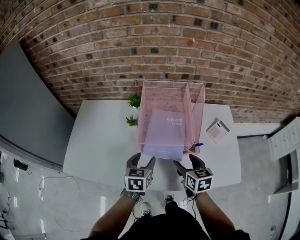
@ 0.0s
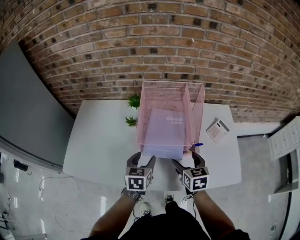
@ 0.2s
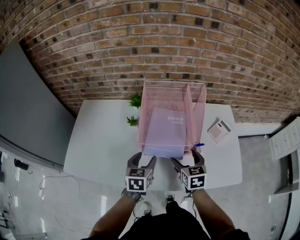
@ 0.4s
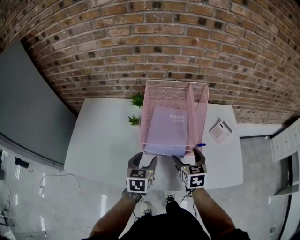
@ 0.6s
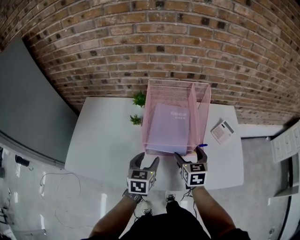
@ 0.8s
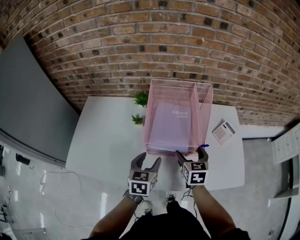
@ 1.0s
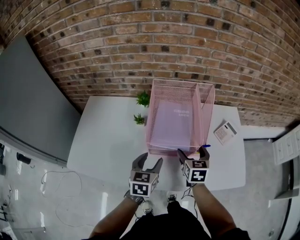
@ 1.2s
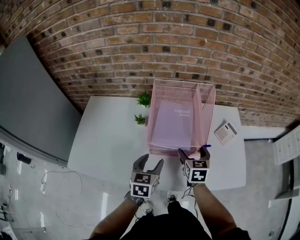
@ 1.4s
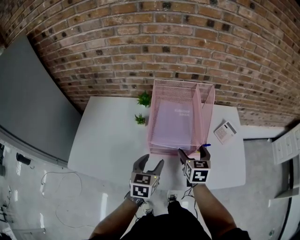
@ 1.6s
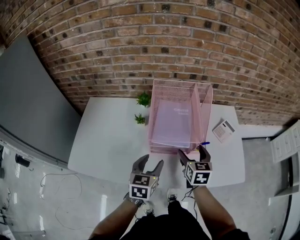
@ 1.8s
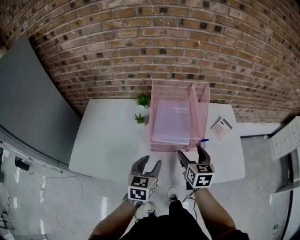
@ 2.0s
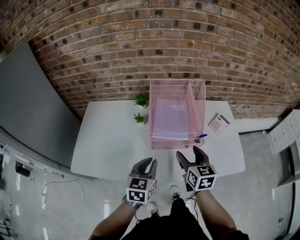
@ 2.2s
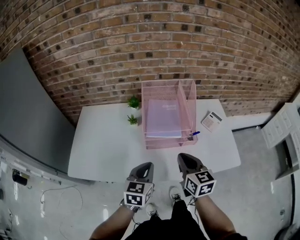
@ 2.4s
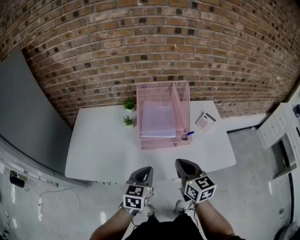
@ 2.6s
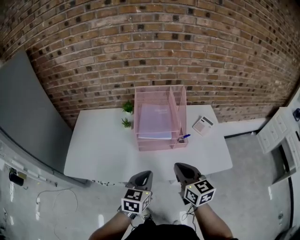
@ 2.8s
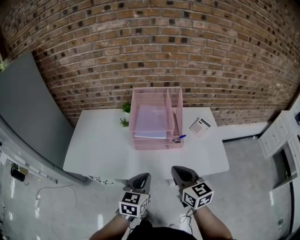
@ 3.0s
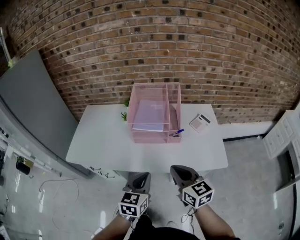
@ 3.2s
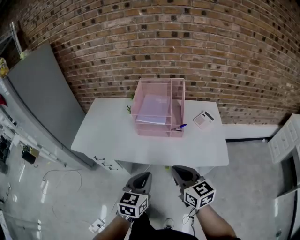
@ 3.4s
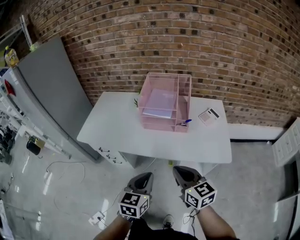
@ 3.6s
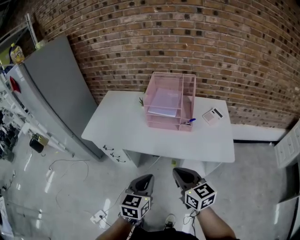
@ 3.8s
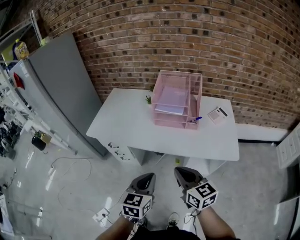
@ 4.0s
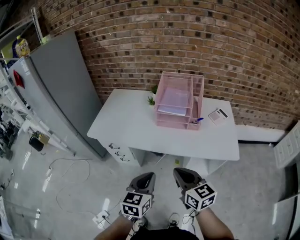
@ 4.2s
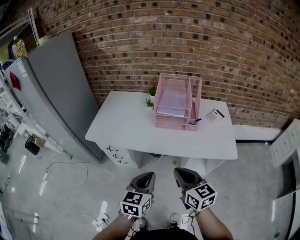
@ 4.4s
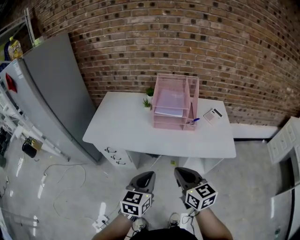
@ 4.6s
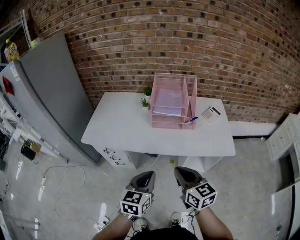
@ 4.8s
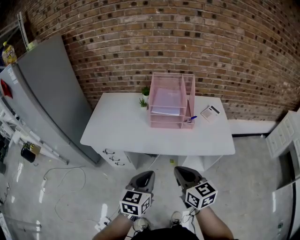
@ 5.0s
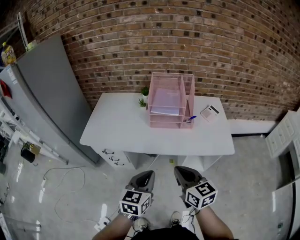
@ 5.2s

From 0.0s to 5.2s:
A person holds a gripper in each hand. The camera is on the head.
From 0.0s to 1.8s: The left gripper moves some 5 cm.
From 1.8s to 3.4s: The right gripper moves backward, approximately 30 cm, rotates about 30 degrees, and closes up, while the left gripper shifts some 30 cm backward and to the right, and closes.
From 3.4s to 5.2s: The left gripper moves to the left, roughly 10 cm. The right gripper shifts about 10 cm to the left and backward.

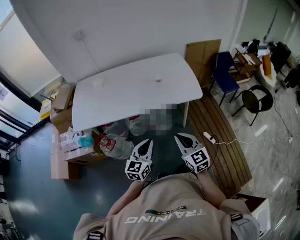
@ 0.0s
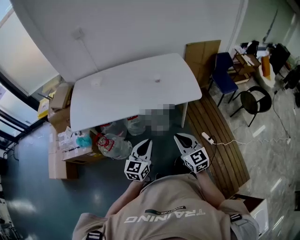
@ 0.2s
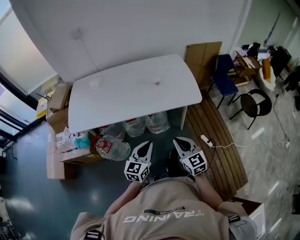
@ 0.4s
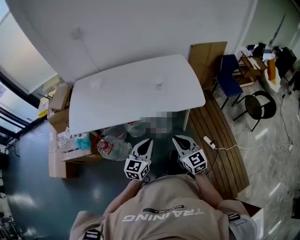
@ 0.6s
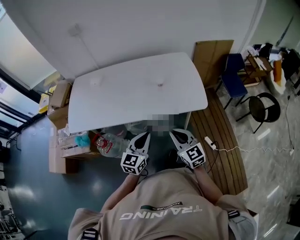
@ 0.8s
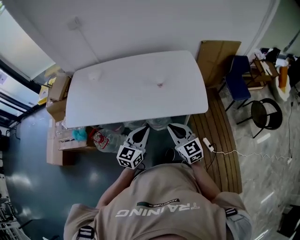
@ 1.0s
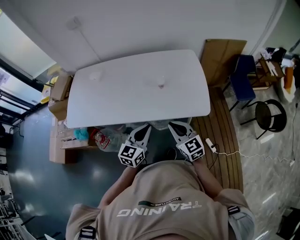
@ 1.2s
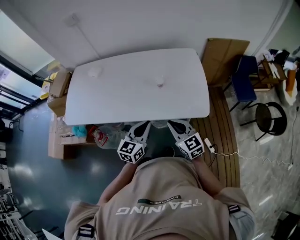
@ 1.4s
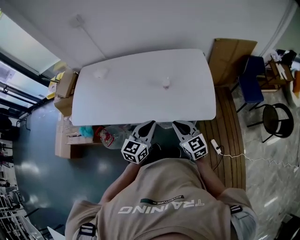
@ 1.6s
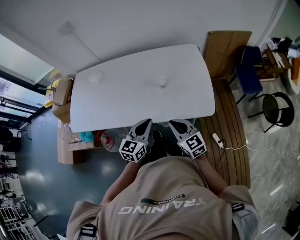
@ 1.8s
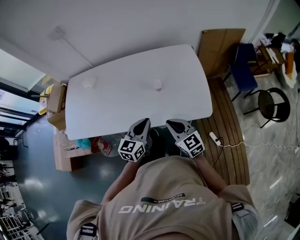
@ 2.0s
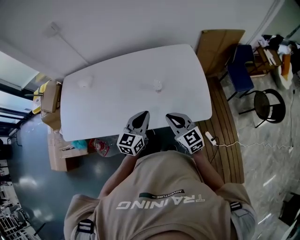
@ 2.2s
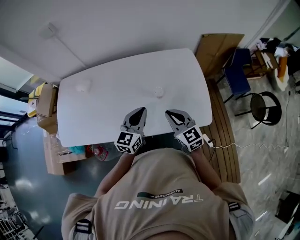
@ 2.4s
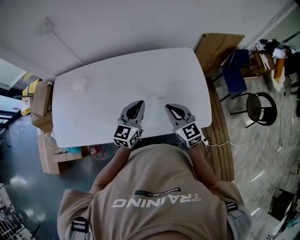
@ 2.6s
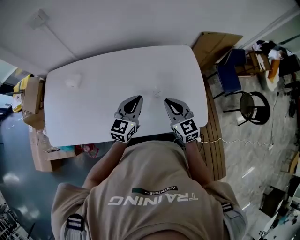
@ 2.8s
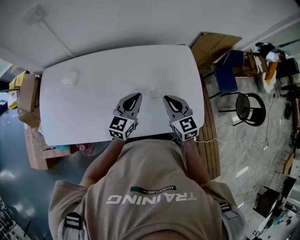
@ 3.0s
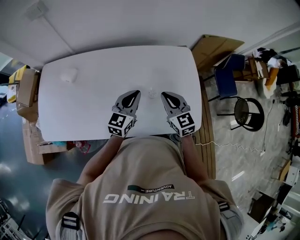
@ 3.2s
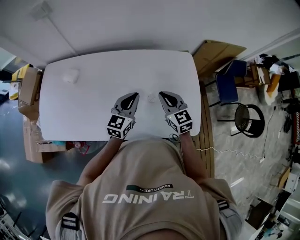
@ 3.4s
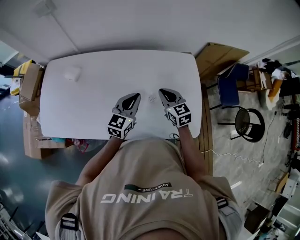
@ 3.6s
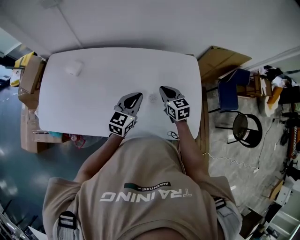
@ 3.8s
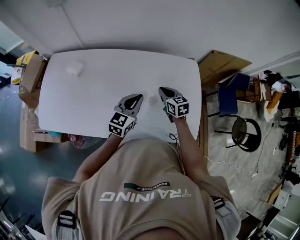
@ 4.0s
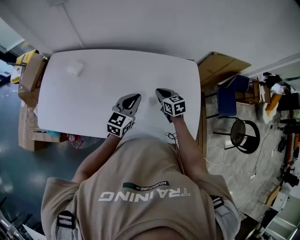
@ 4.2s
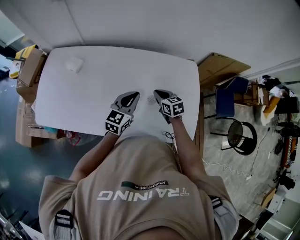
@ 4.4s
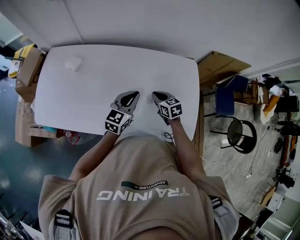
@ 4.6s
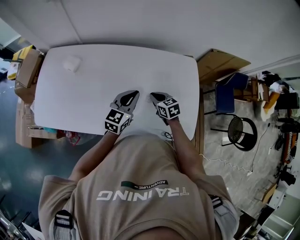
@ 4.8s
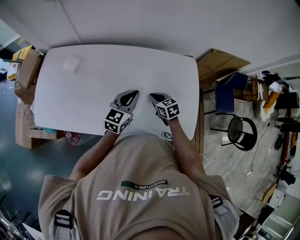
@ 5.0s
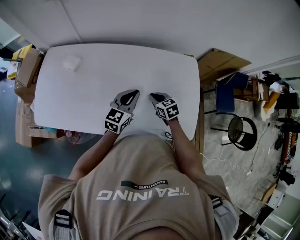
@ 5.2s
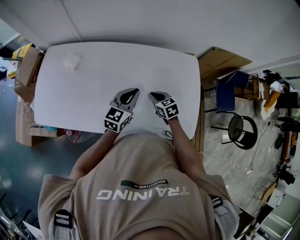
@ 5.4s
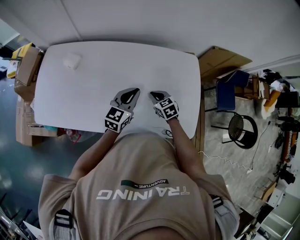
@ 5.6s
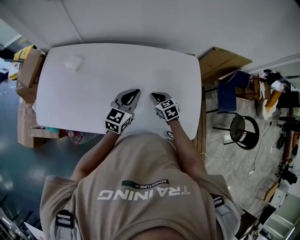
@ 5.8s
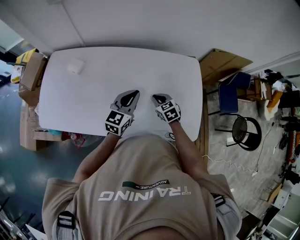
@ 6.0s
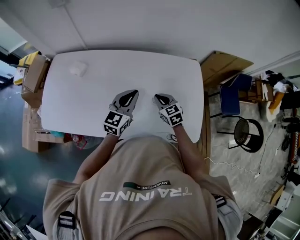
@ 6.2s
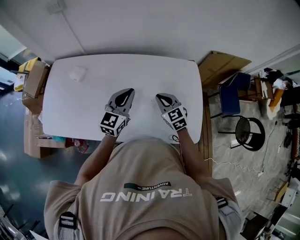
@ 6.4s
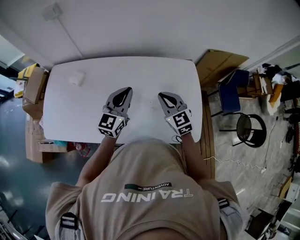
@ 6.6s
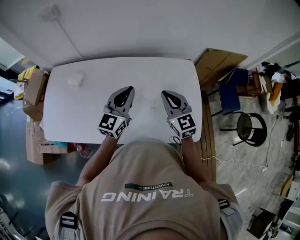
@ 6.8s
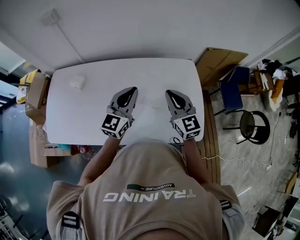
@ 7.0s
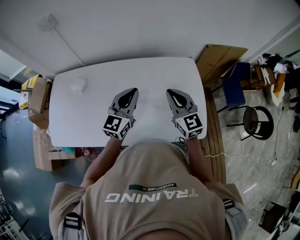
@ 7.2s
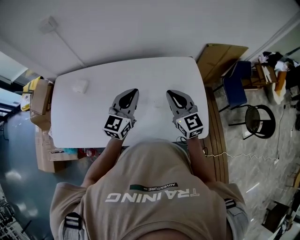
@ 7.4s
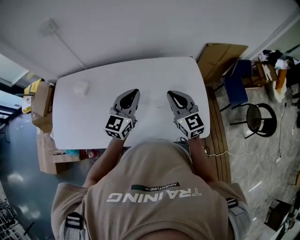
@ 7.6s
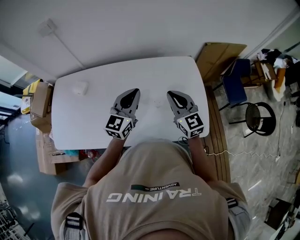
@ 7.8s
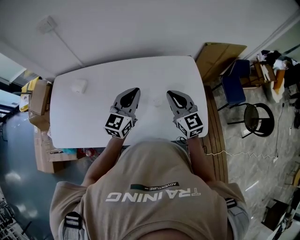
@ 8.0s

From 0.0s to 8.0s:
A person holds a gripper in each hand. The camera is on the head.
From 0.0s to 1.6s: The two grippers go roughly 25 cm forward.
From 1.6s to 3.2s: The grippers both shift forward by about 25 cm.
From 3.2s to 4.8s: The right gripper travels downward by approximately 15 cm, and swivels about 30 degrees.
From 4.8s to 6.4s: The two grippers go roughly 5 cm upward. The right gripper rotates about 20 degrees.
From 6.4s to 8.0s: The right gripper is displaced upward by approximately 10 cm, and swivels about 20 degrees.

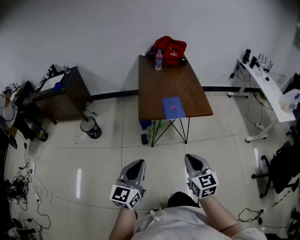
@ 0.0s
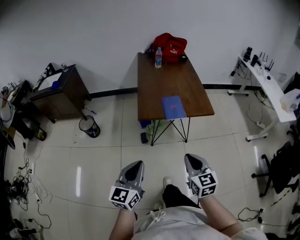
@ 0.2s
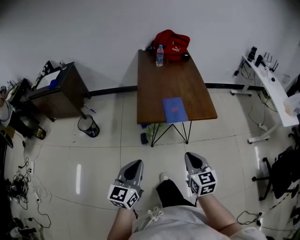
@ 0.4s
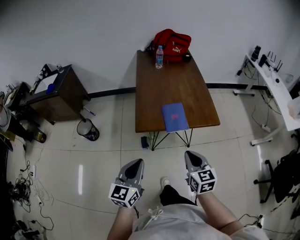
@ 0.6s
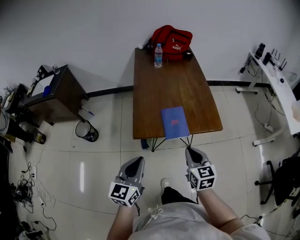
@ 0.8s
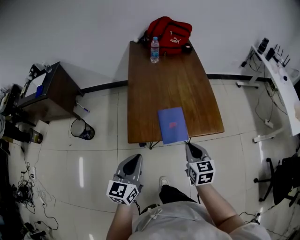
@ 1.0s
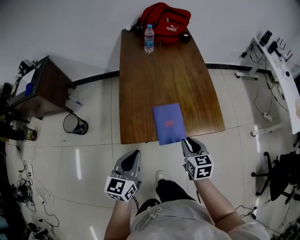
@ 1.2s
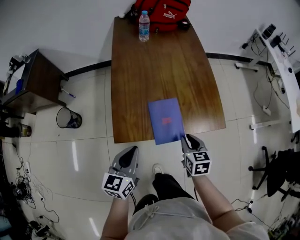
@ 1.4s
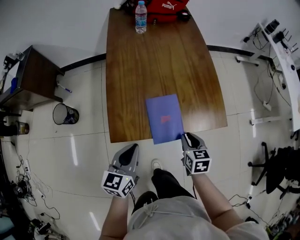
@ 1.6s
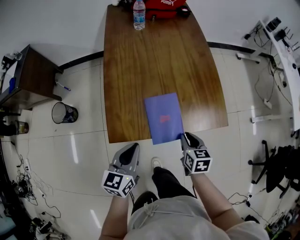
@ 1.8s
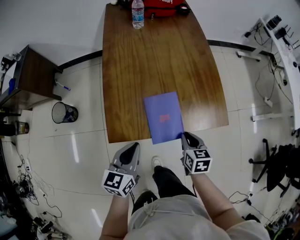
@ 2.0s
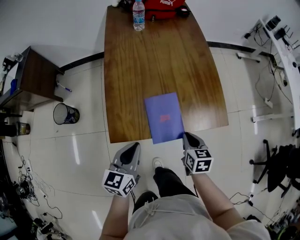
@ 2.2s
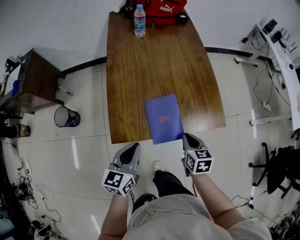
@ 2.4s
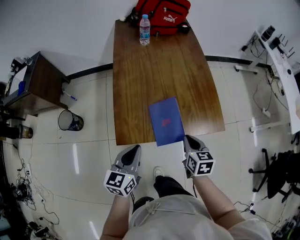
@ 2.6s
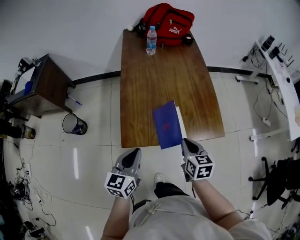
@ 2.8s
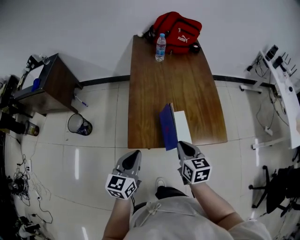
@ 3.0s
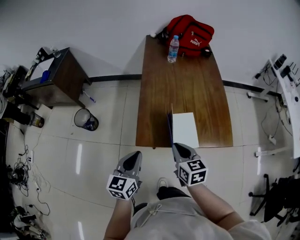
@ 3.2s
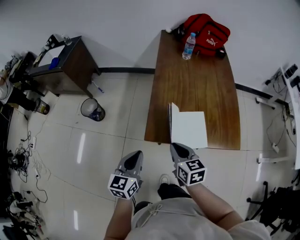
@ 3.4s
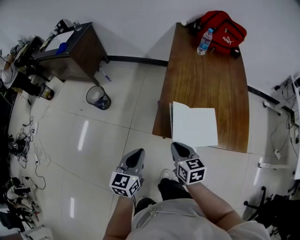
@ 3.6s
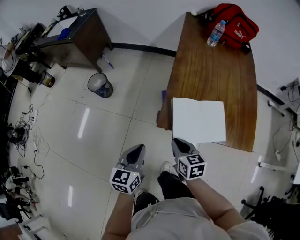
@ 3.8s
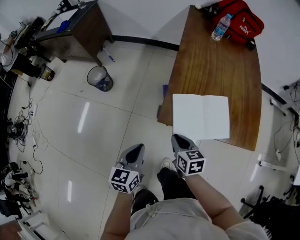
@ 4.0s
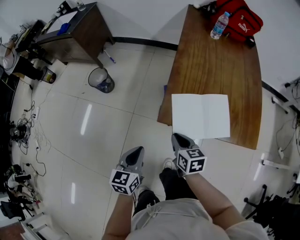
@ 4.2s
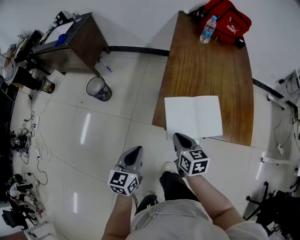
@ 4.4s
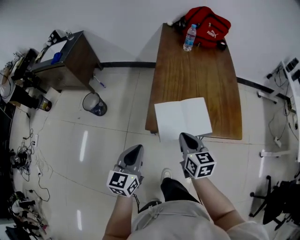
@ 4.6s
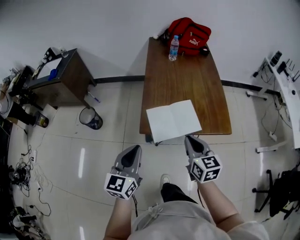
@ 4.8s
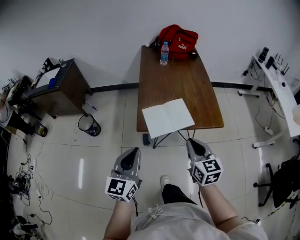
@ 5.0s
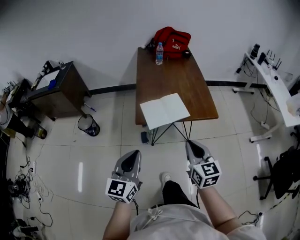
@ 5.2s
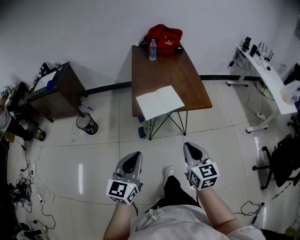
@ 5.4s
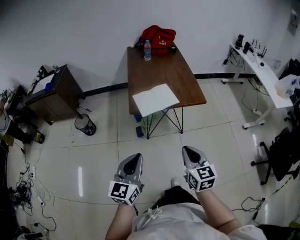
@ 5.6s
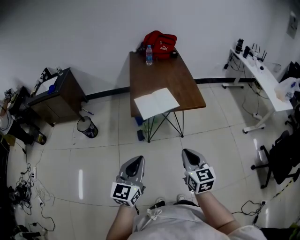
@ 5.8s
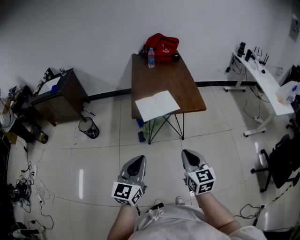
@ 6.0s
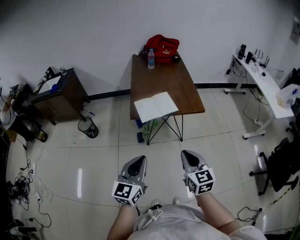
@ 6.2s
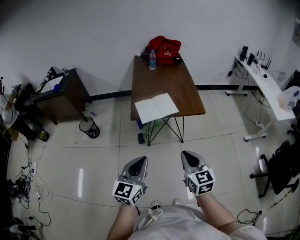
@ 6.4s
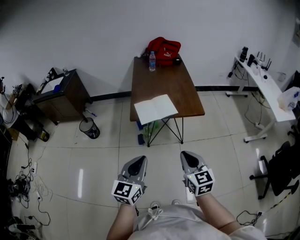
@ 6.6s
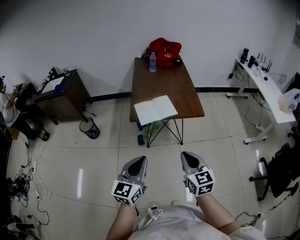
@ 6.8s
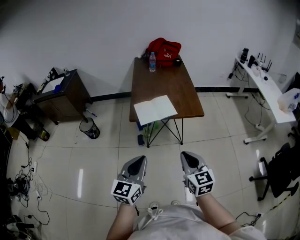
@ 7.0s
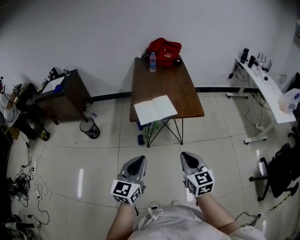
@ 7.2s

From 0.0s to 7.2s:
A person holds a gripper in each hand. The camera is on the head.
From 0.0s to 1.4s: The left gripper heads forward, covering approximately 40 cm; the right gripper heads forward and downward, covering about 40 cm, and changes its angle by some 30 degrees.
From 1.4s to 2.8s: The right gripper travels upward by some 5 cm.
From 2.8s to 4.4s: The right gripper goes up and down, roughly 15 cm each way, reversing 2 times, and rotates some 20 degrees, while the left gripper ends up roughly 15 cm from where it was.
From 4.4s to 5.8s: The left gripper shifts roughly 35 cm backward and upward, and swivels approximately 30 degrees. Meanwhile the right gripper shifts roughly 40 cm backward, upward and to the right, and turns by approximately 30 degrees.
From 5.8s to 7.2s: The left gripper is displaced to the right by approximately 5 cm.

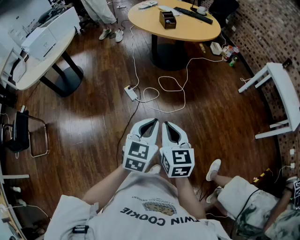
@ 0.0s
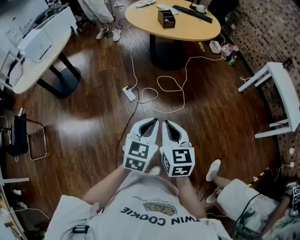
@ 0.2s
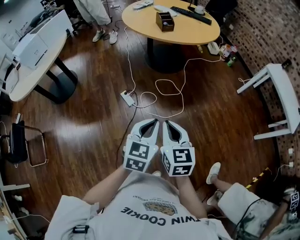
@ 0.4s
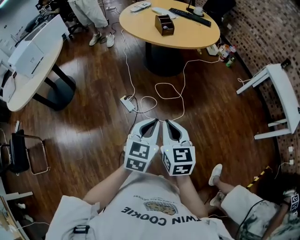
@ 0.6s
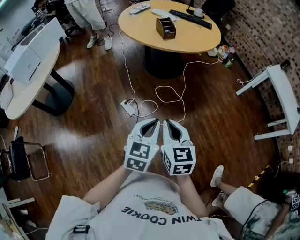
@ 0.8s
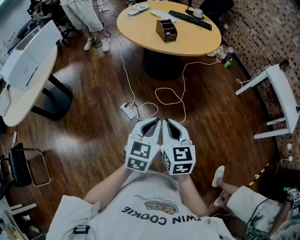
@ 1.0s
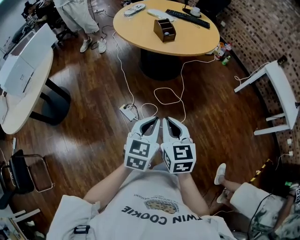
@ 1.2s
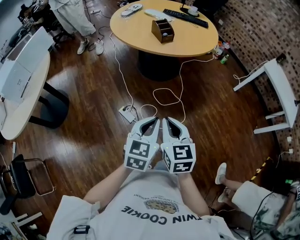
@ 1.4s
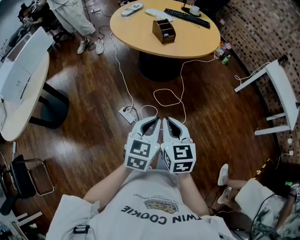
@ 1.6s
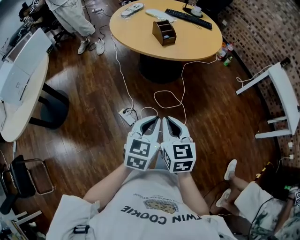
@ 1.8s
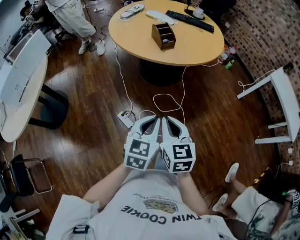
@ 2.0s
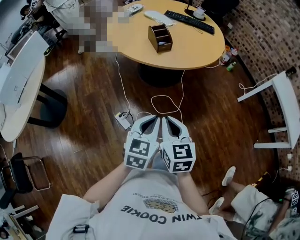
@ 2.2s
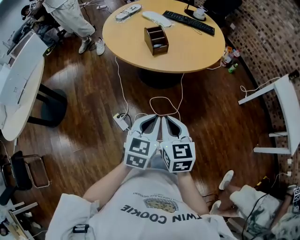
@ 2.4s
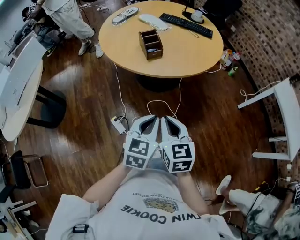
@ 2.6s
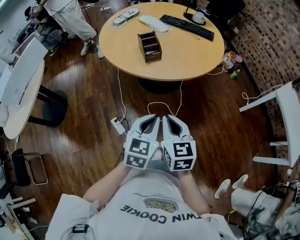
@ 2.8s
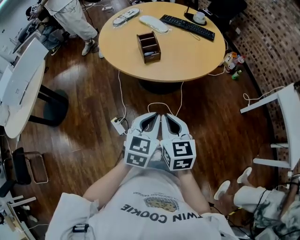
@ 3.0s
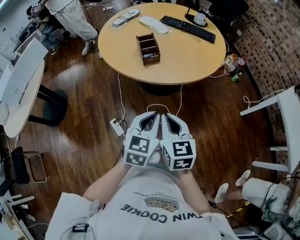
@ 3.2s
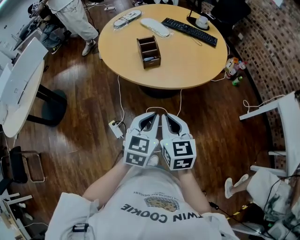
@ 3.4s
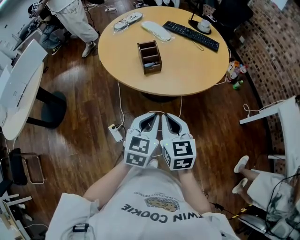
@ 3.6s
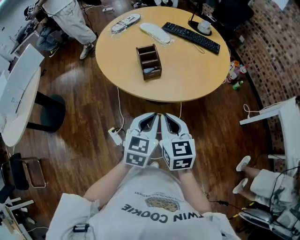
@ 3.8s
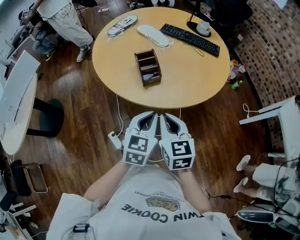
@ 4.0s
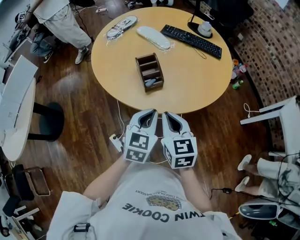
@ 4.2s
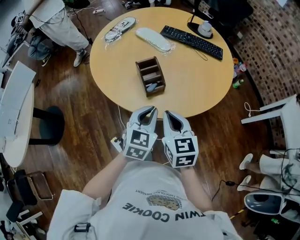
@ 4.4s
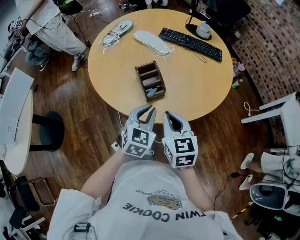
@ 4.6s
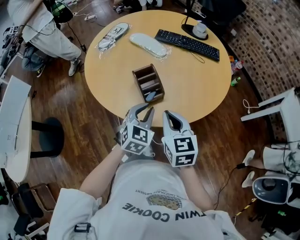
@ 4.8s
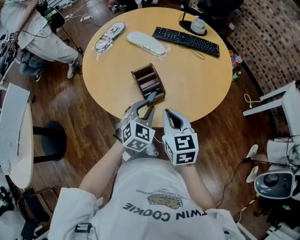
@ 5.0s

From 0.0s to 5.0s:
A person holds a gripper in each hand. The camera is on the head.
From 0.0s to 1.6s: Both grippers move forward and to the left, roughly 35 cm.
From 1.6s to 3.4s: The grippers both shift forward and to the right by about 35 cm.
From 3.4s to 5.0s: The two grippers go roughly 25 cm forward. The left gripper rotates some 30 degrees, and opens.
